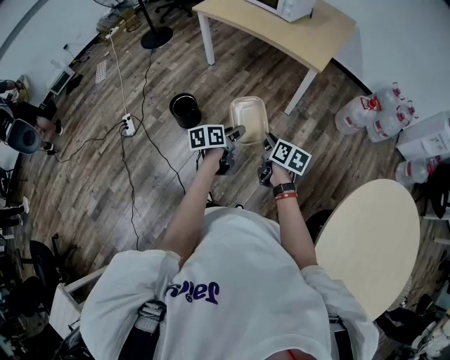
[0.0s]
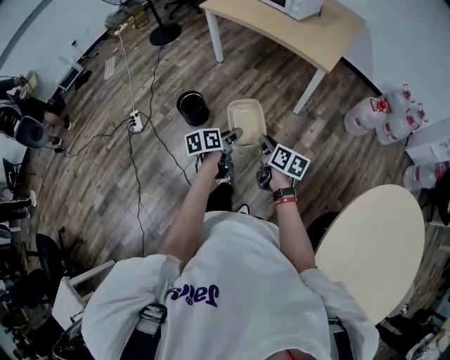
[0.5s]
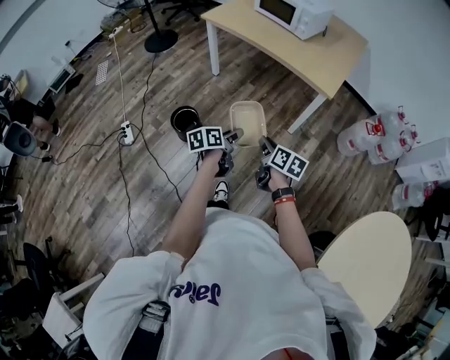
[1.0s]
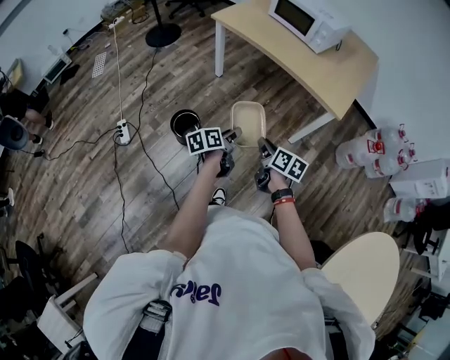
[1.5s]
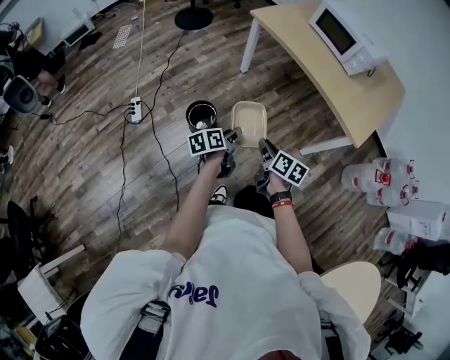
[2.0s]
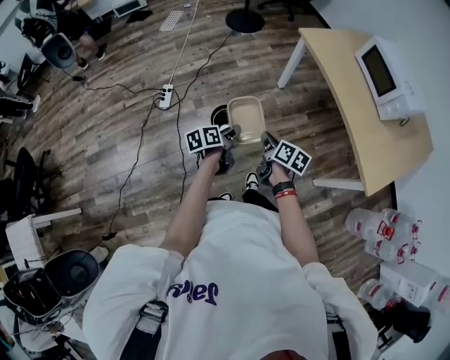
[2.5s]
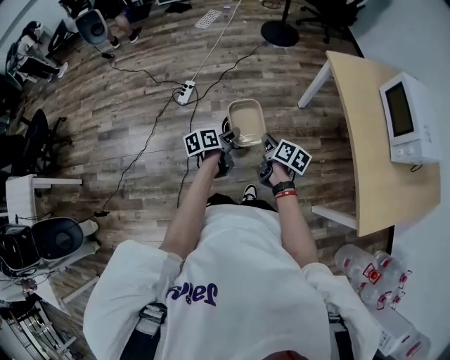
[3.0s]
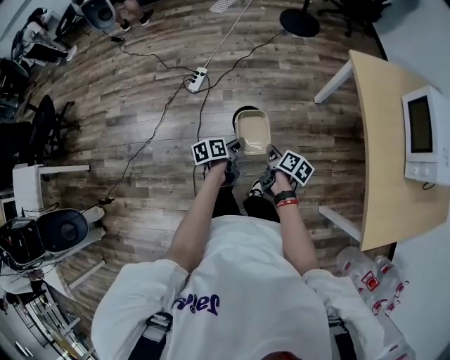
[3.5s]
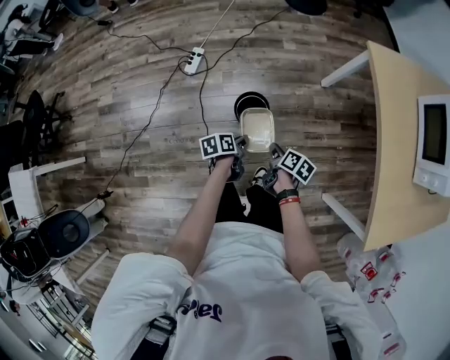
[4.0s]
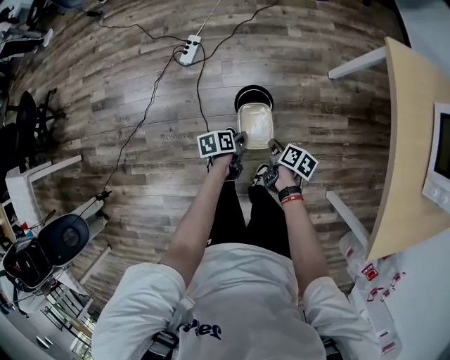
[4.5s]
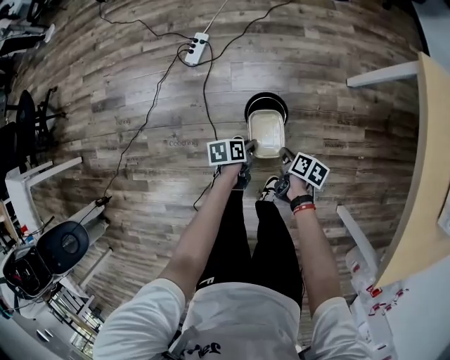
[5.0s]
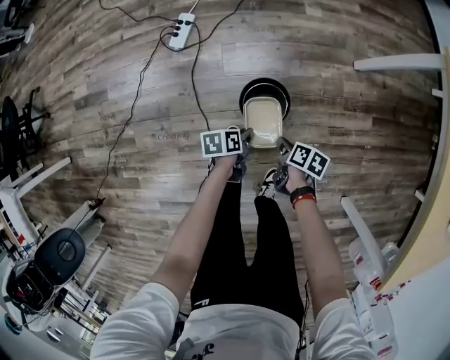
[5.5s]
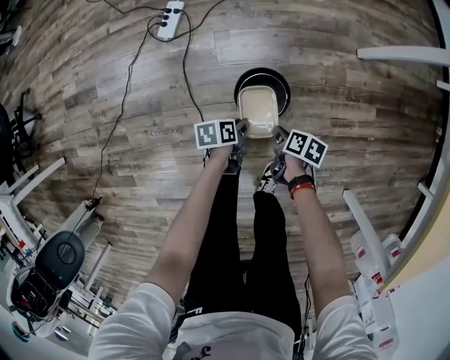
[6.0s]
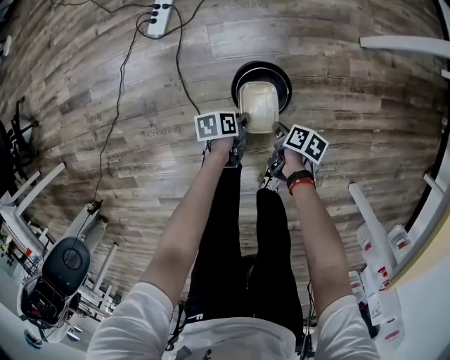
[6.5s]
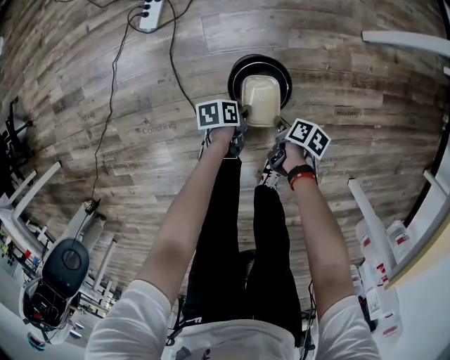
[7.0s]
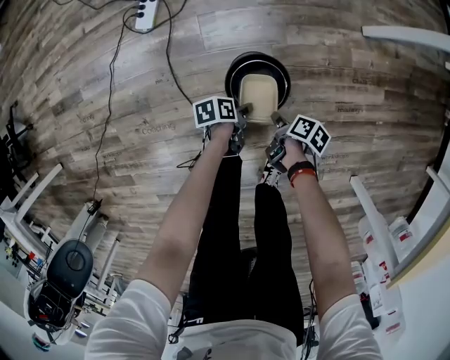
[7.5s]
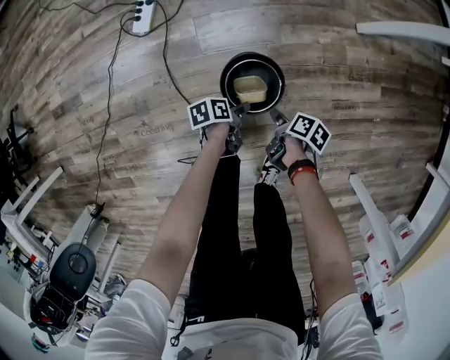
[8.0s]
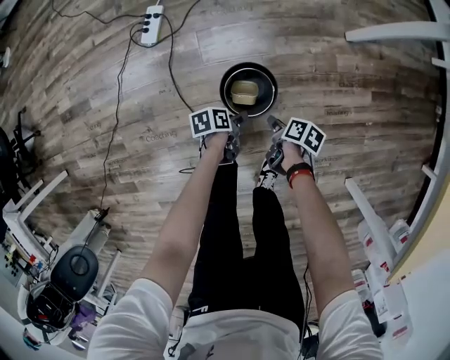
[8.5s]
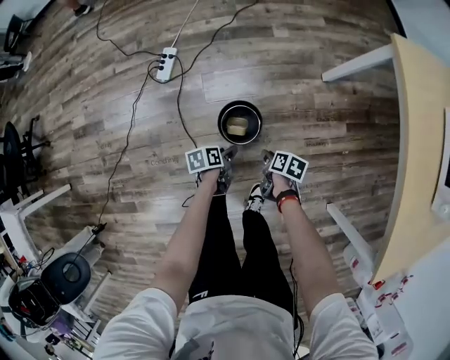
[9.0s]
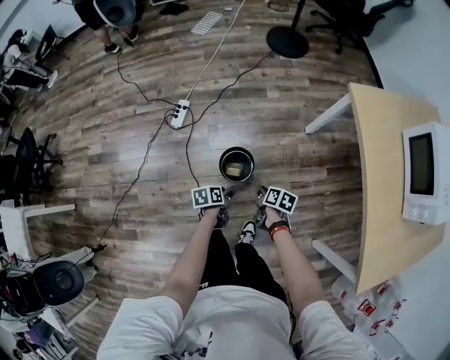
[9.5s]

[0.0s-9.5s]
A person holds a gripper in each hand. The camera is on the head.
0.0s to 2.0s: Both grippers travel together forward and to the left, roughly 35 cm. The left gripper rotates about 20 degrees.
2.0s to 4.0s: The left gripper ends up roughly 25 cm from where it was, and changes its angle by some 40 degrees, while the right gripper moves roughly 30 cm, and rotates approximately 30 degrees.
4.0s to 5.5s: The grippers both shift downward by roughly 30 cm.
5.5s to 7.5s: The grippers both shift downward by approximately 15 cm. The left gripper opens its fingers; the right gripper swivels some 20 degrees.
7.5s to 9.5s: The grippers both shift upward by approximately 40 cm. The left gripper turns by approximately 20 degrees. Meanwhile the right gripper rotates about 30 degrees.

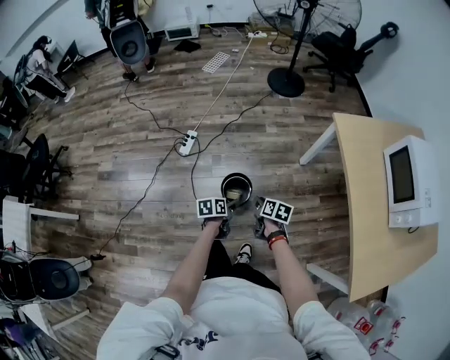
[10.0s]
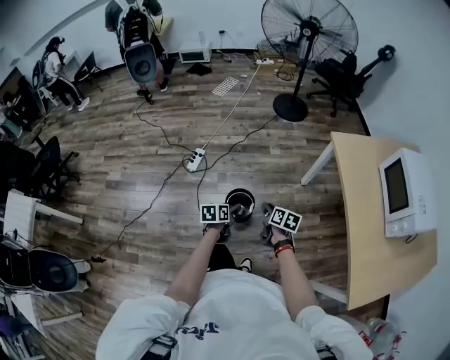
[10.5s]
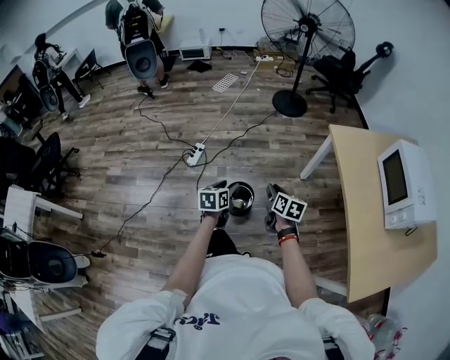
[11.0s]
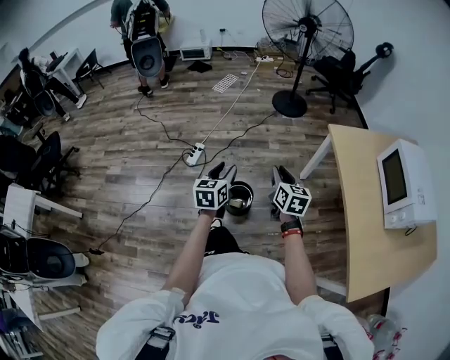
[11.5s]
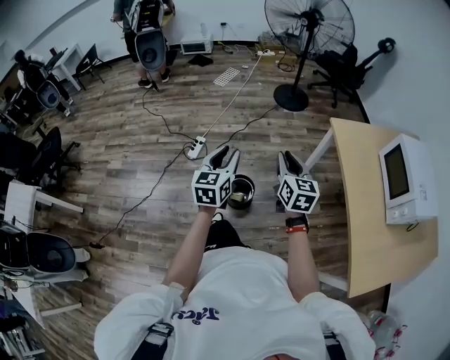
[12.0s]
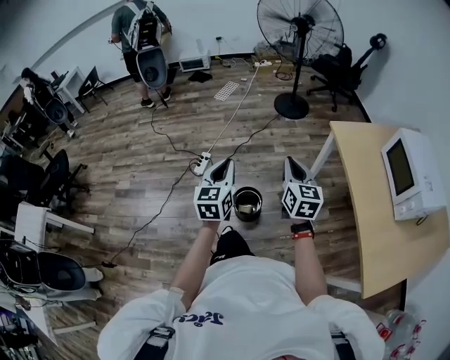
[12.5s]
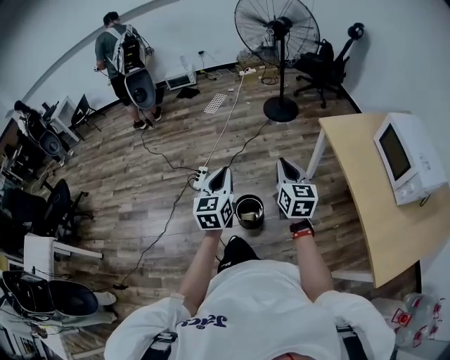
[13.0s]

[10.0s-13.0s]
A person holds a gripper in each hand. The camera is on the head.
10.0s to 11.5s: The grippers both shift upward by some 25 cm. The left gripper rotates approximately 40 degrees. The right gripper changes its angle by roughly 40 degrees.
11.5s to 13.0s: Both grippers travel together upward, approximately 10 cm. The left gripper closes.

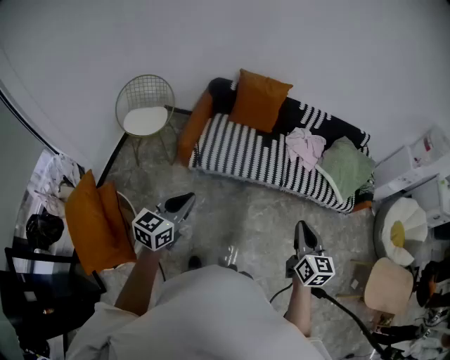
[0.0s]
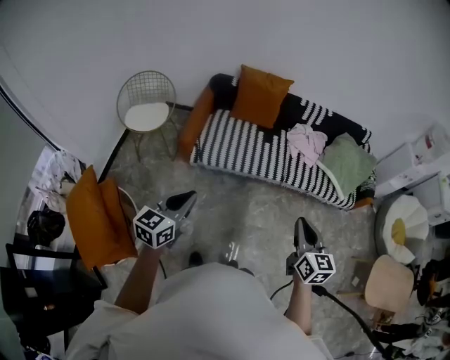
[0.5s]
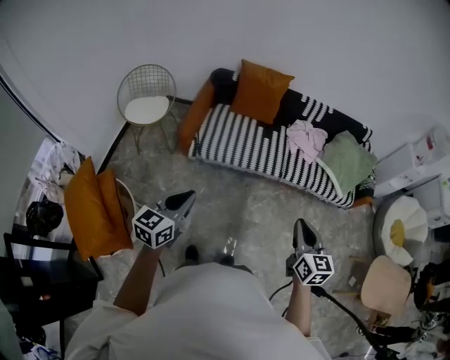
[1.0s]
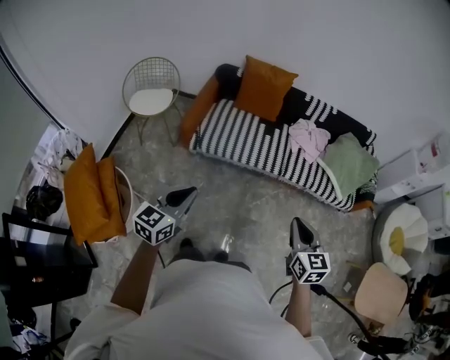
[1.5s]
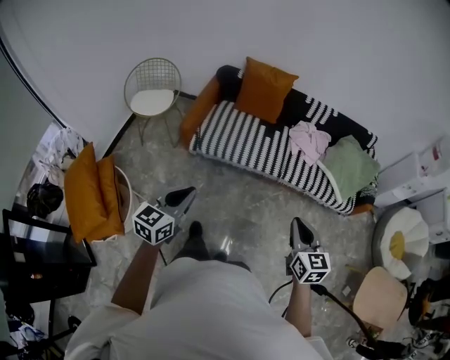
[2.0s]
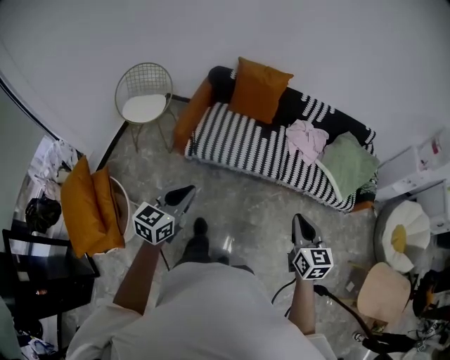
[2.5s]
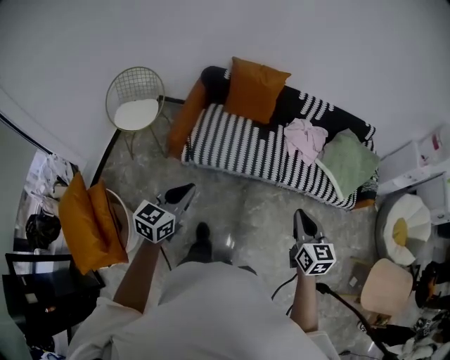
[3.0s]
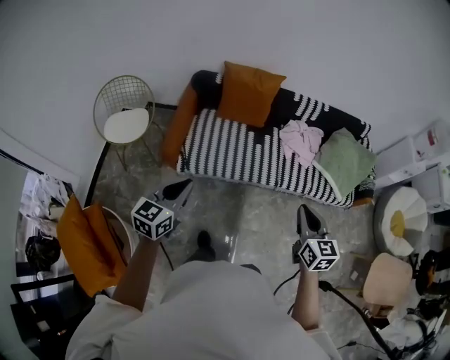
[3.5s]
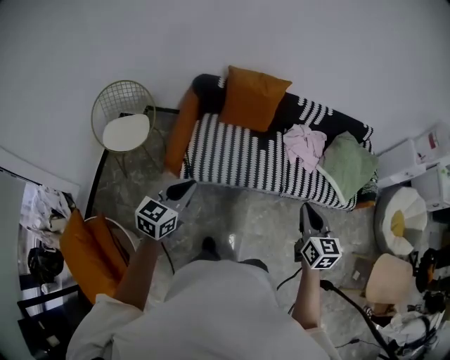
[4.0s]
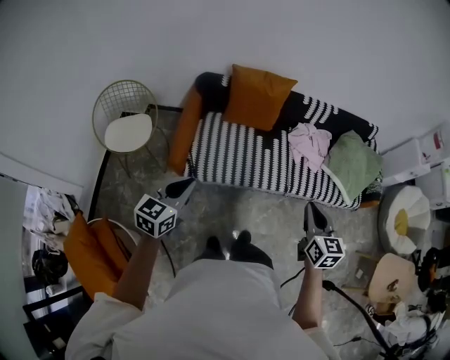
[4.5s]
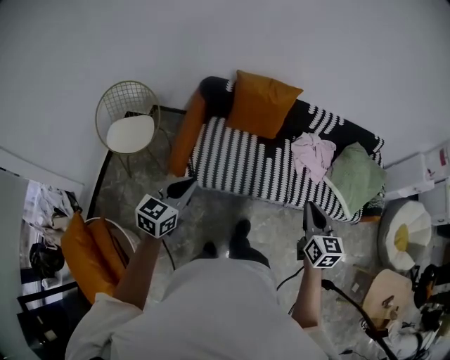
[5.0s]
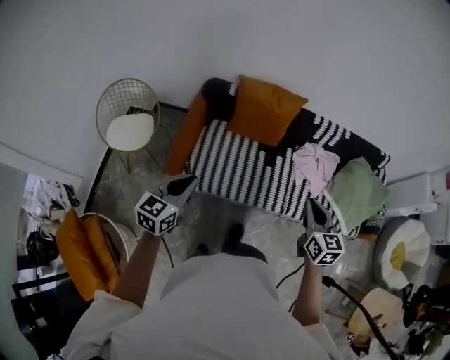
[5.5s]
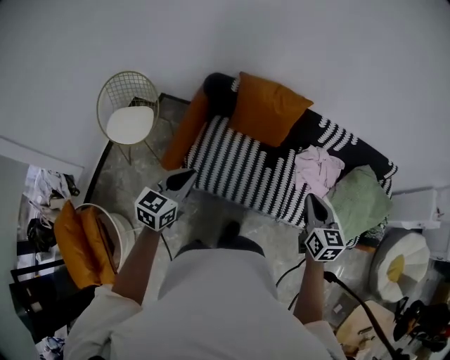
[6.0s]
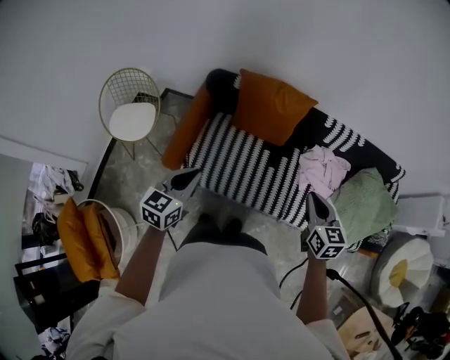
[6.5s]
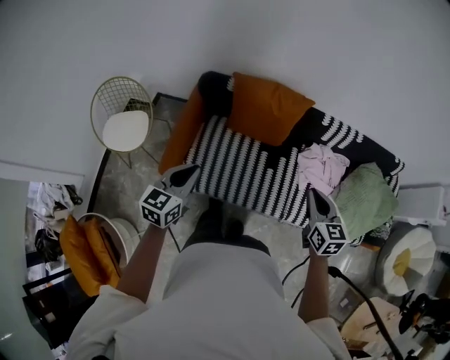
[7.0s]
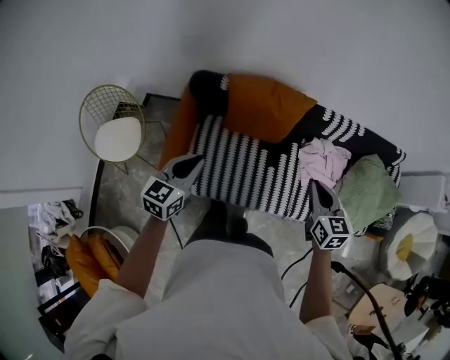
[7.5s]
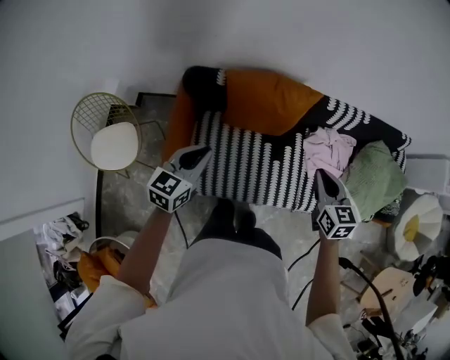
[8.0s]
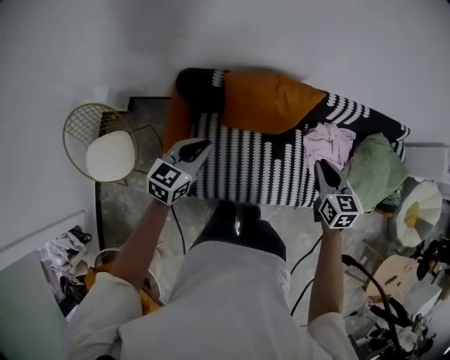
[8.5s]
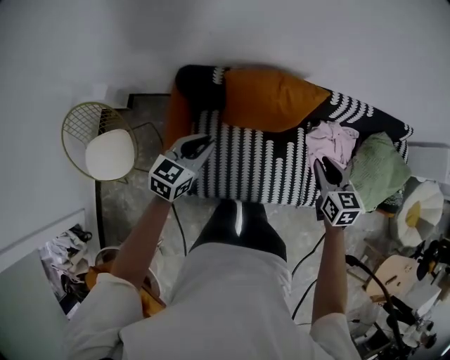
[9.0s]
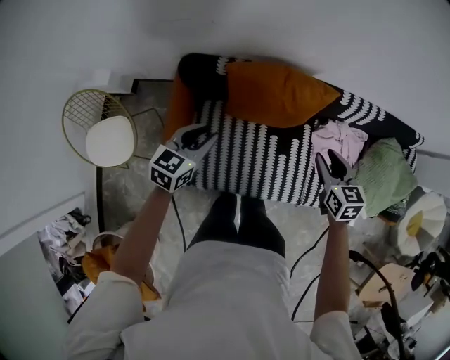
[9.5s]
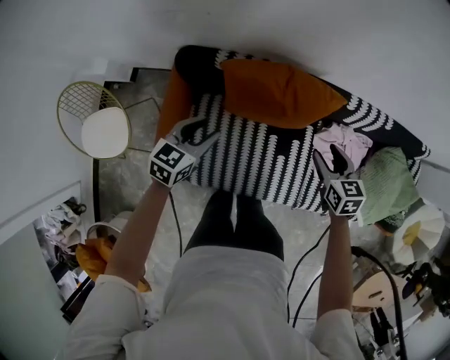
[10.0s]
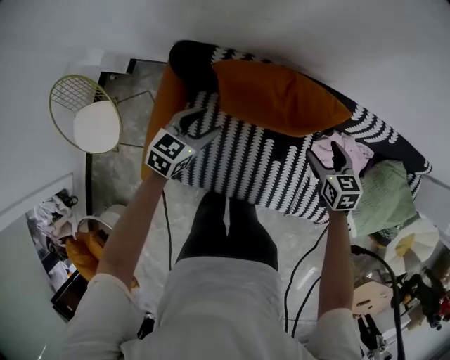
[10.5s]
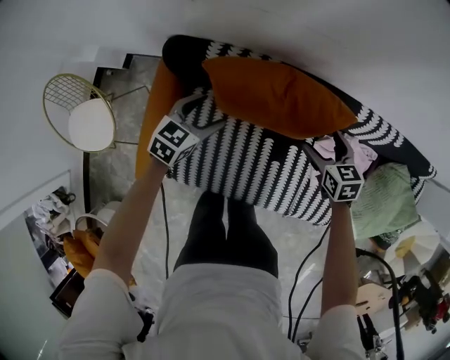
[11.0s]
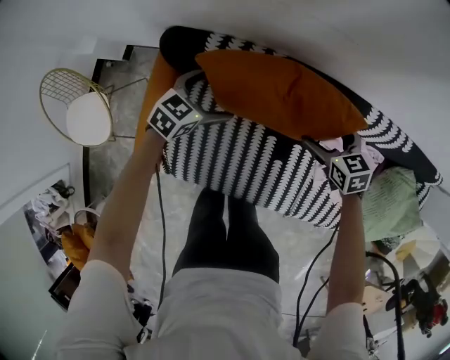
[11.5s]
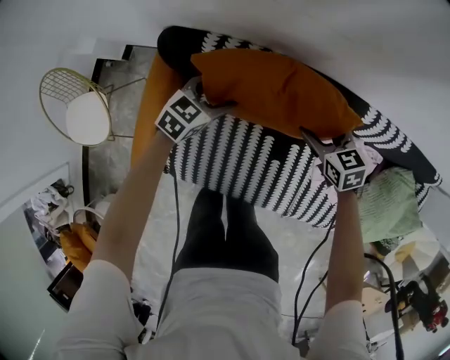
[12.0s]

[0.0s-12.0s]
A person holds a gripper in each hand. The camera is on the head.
0.0s to 2.0s: Both grippers move to the right, roughly 10 cm.
2.0s to 4.0s: The grippers both shift forward and to the left by approximately 35 cm.
4.0s to 6.0s: Both grippers move forward, roughly 30 cm.
6.0s to 8.0s: The grippers both shift forward by some 25 cm.
8.0s to 10.0s: Both grippers travel together forward and downward, approximately 20 cm. The right gripper opens its fingers.
10.0s to 12.0s: Both grippers travel together downward and forward, approximately 20 cm. The left gripper opens and closes again; the right gripper changes its angle by about 20 degrees, and opens, then closes once more.

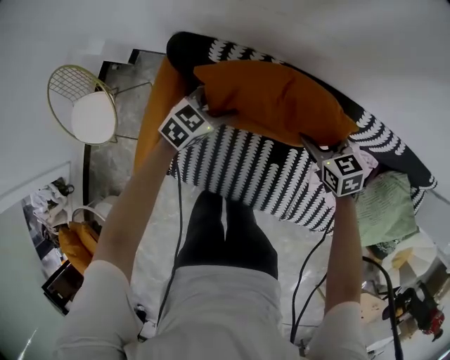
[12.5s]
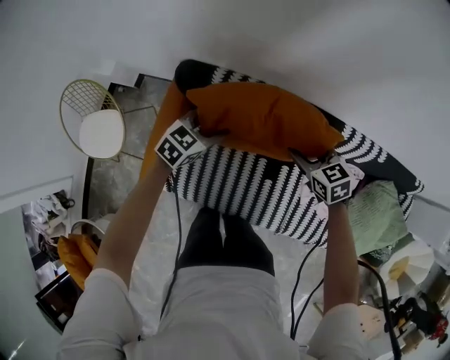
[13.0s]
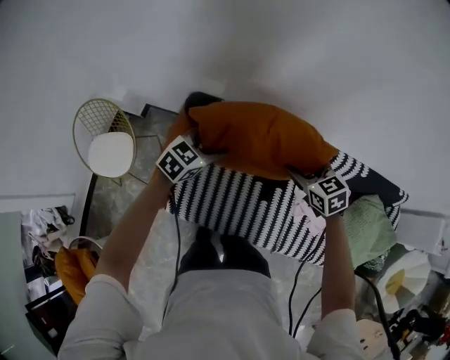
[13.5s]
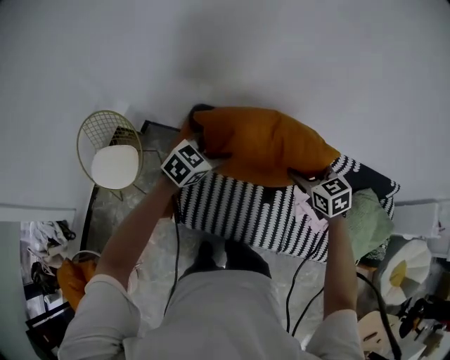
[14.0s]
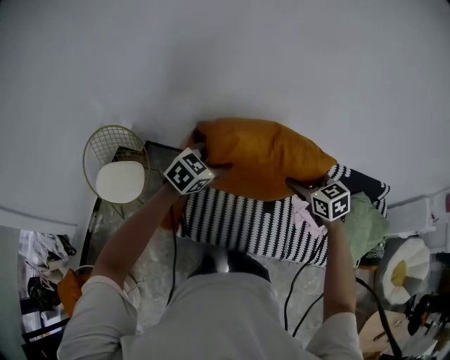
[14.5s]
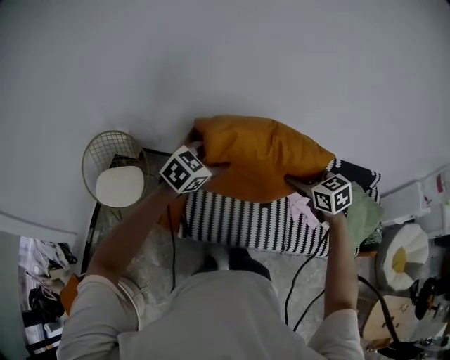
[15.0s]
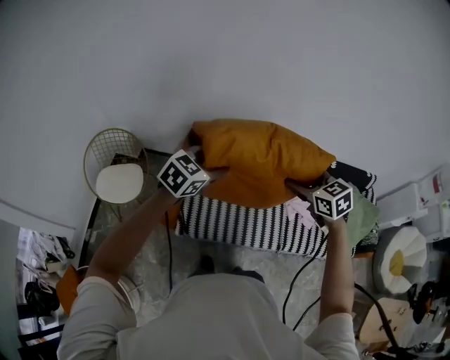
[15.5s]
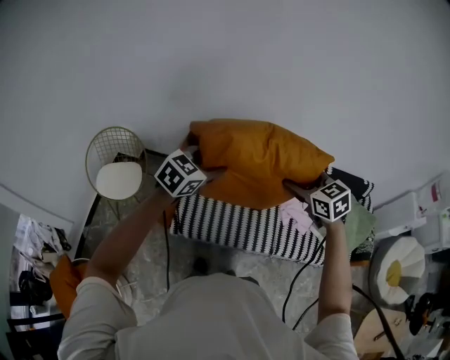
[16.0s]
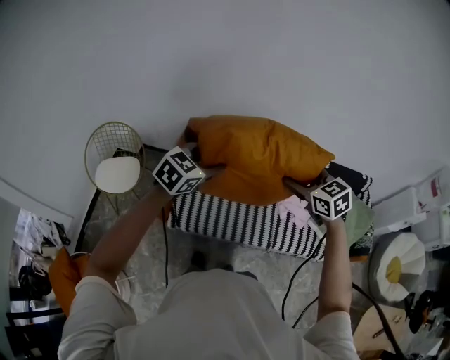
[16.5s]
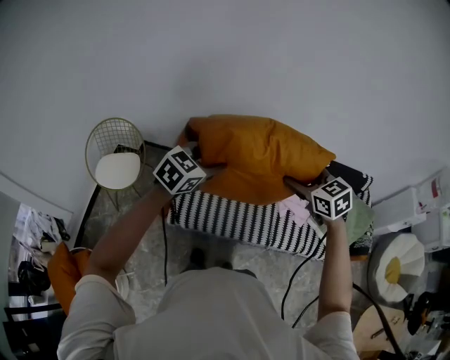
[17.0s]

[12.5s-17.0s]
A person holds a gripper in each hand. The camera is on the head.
12.5s to 14.5s: The two grippers go roughly 50 cm upward and backward.
14.5s to 17.0s: The right gripper heads backward, upward and to the right, covering approximately 25 cm; the left gripper is displaced backward, to the right and upward by approximately 25 cm.
